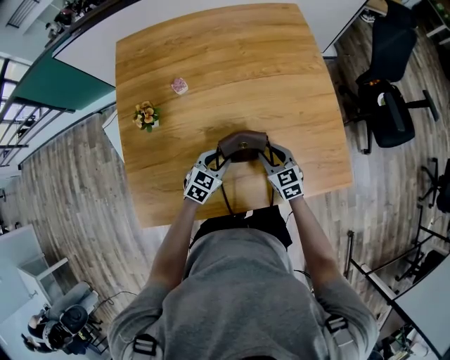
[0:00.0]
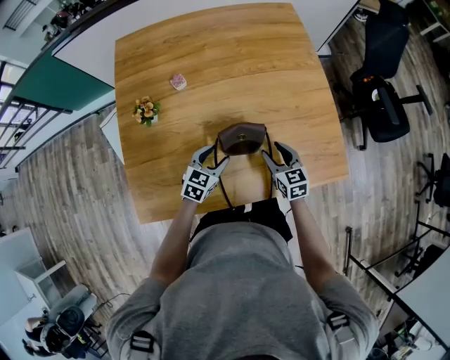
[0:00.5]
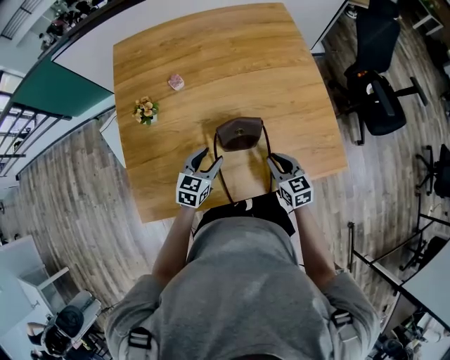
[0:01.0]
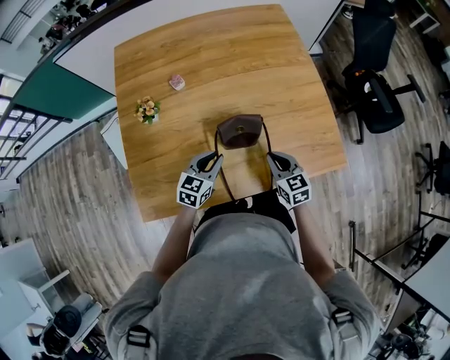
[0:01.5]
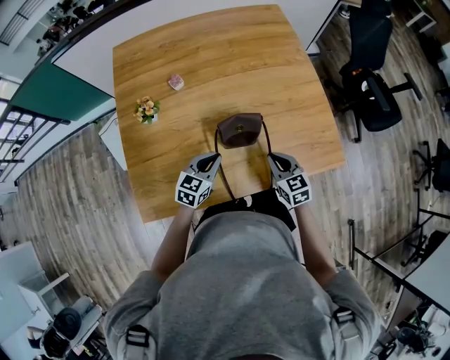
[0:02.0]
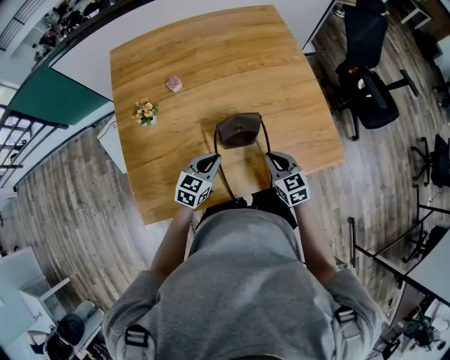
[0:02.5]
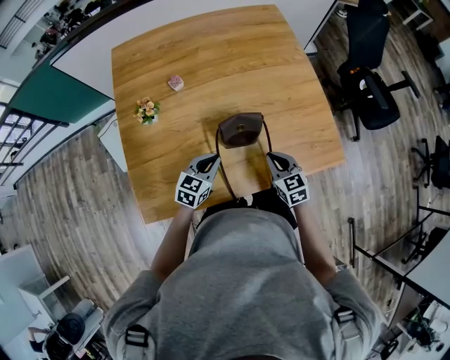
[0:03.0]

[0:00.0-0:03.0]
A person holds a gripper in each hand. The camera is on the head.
0:00.0 to 0:01.5: The right gripper travels backward and upward by roughly 10 cm, and closes its fingers; the left gripper shifts about 10 cm upward and backward, and opens, then closes once more.
0:01.5 to 0:03.0: The grippers stay close to where they were, moving slightly.

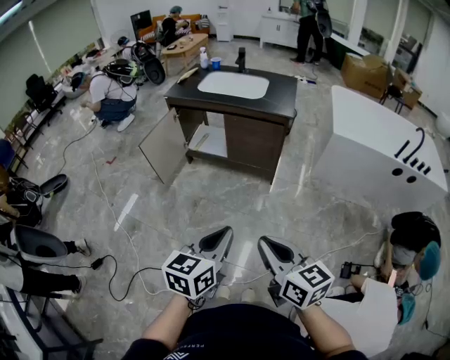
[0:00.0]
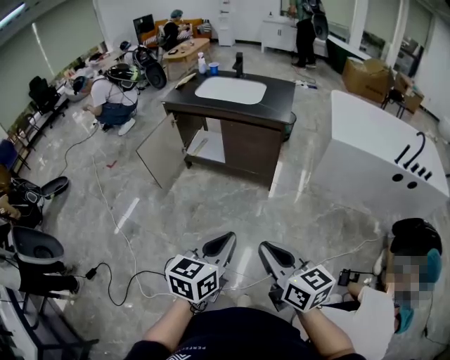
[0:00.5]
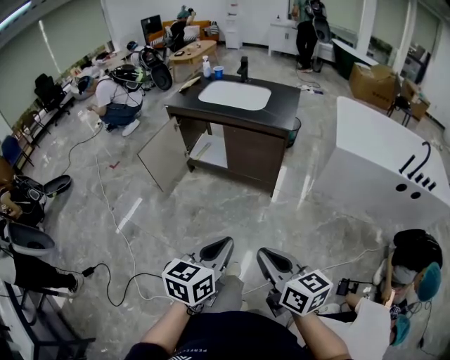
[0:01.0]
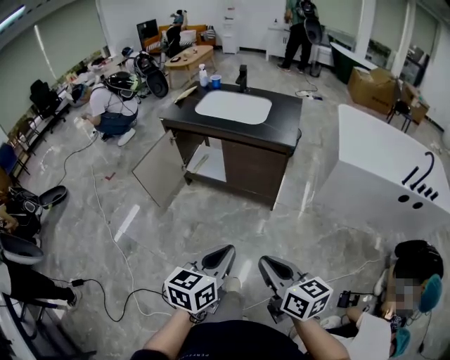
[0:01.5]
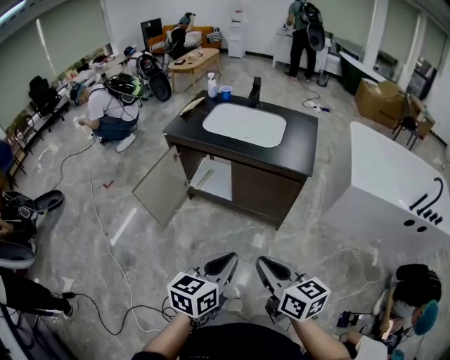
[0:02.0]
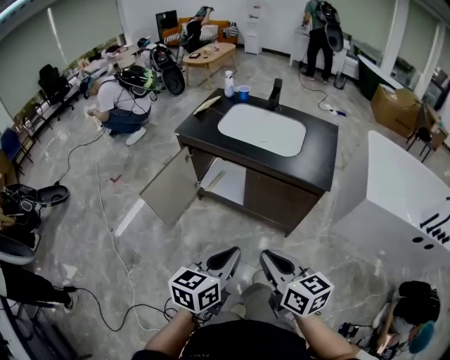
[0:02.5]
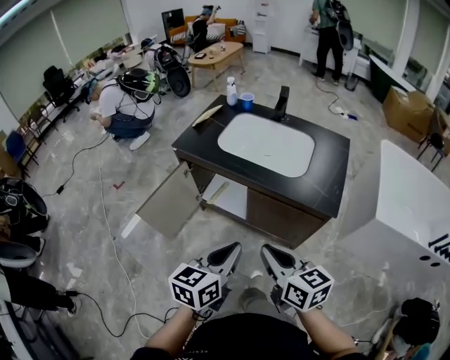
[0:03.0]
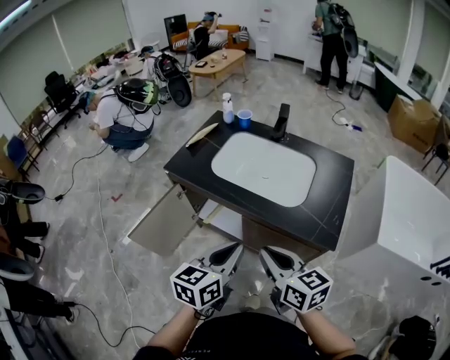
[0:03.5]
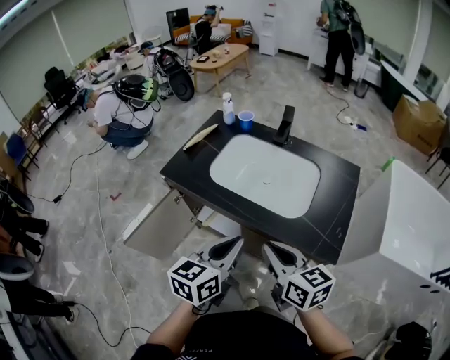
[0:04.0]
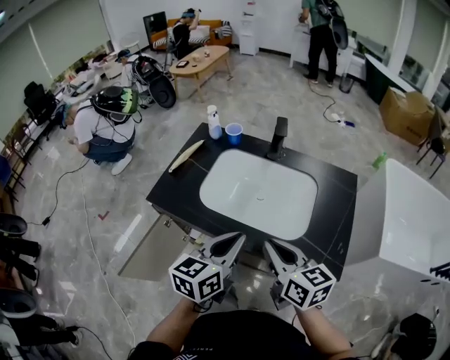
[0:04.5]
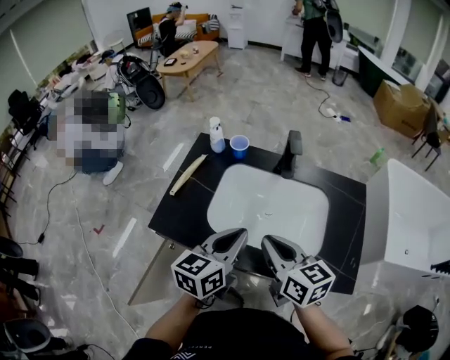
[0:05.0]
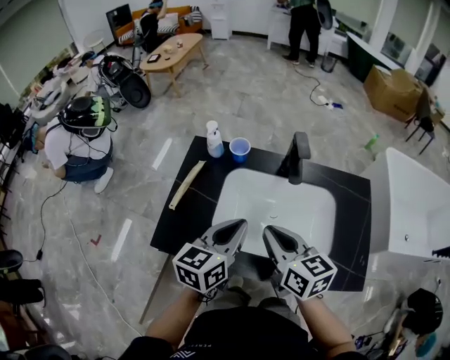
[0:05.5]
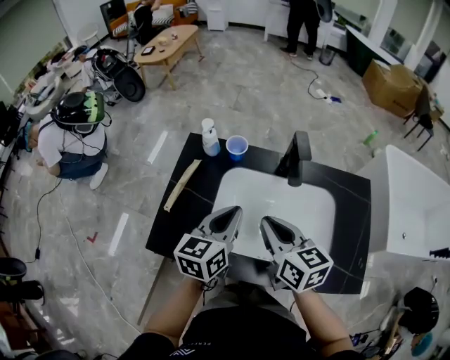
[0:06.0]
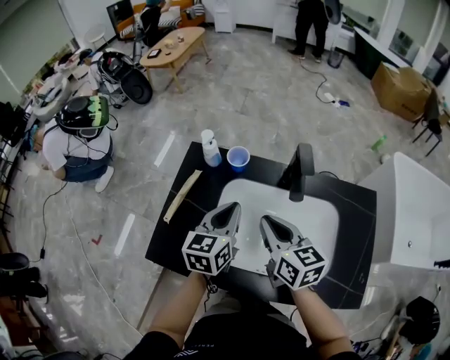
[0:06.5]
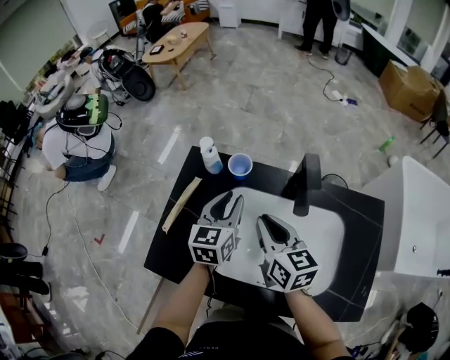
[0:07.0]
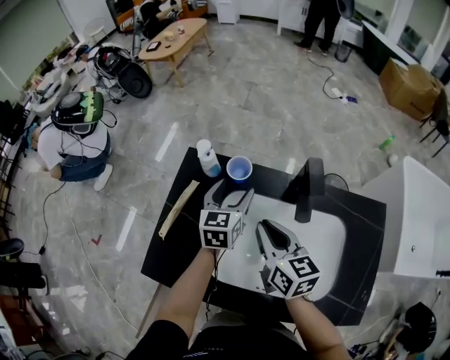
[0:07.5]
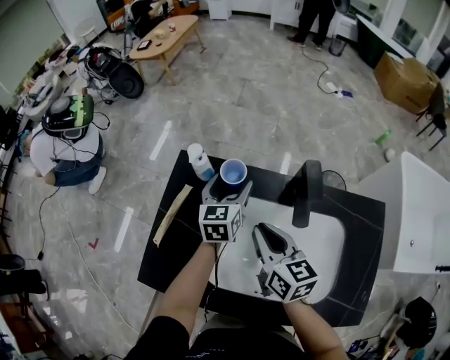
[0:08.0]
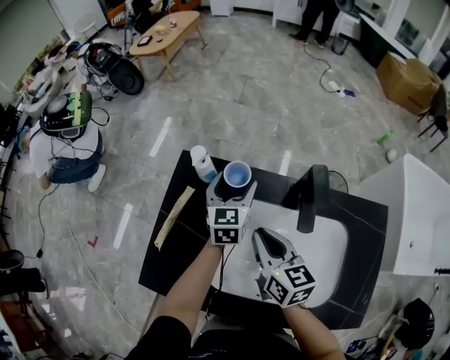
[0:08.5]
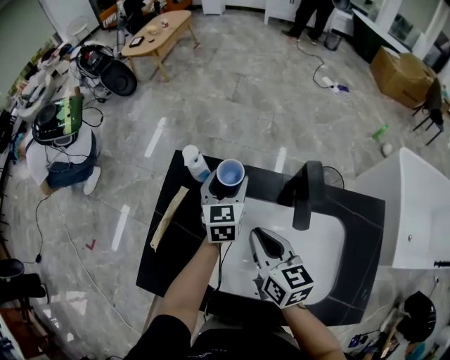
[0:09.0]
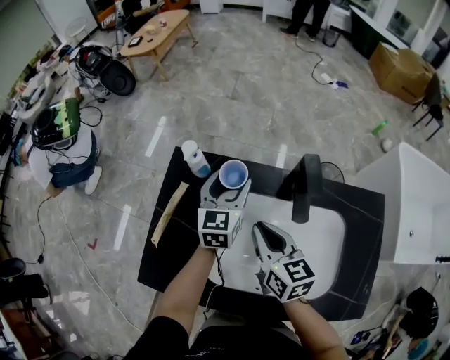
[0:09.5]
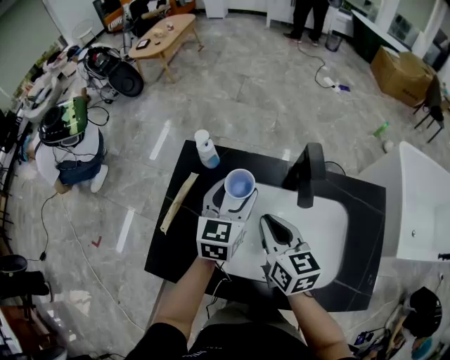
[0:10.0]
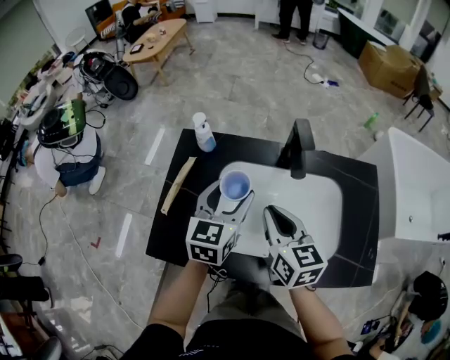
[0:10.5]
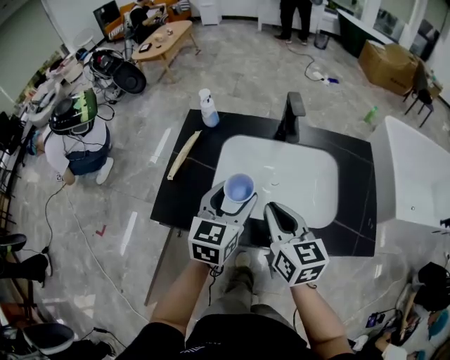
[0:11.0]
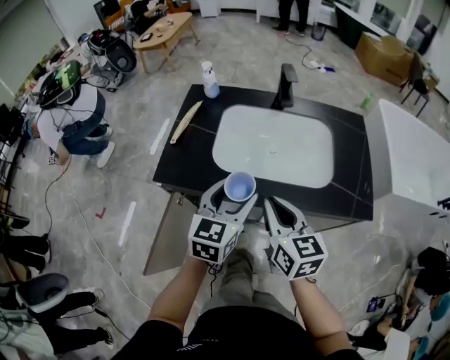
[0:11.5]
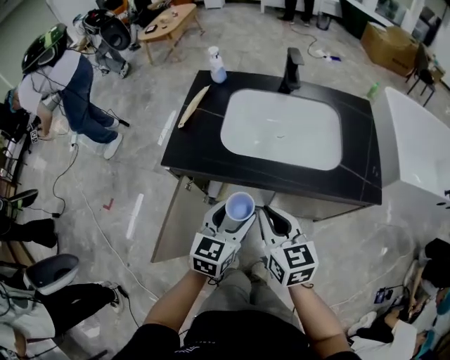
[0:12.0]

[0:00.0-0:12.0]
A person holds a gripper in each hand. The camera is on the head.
0:00.0 to 0:02.0: The grippers both shift forward by about 25 cm.
0:02.0 to 0:04.0: Both grippers are carried forward, roughly 40 cm.
0:04.0 to 0:06.0: Both grippers move forward, about 30 cm.
0:06.0 to 0:08.0: The right gripper goes roughly 10 cm forward and downward; the left gripper shifts roughly 25 cm forward and downward, and opens.
0:08.0 to 0:10.0: The left gripper is displaced backward and upward by some 10 cm.
0:10.0 to 0:12.0: The two grippers go roughly 40 cm backward.

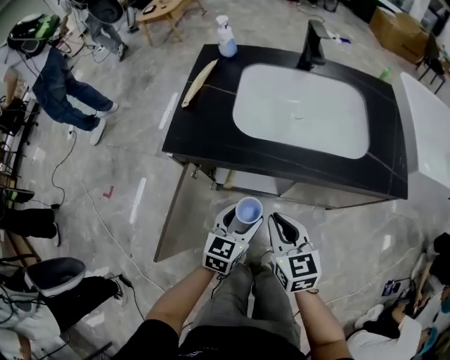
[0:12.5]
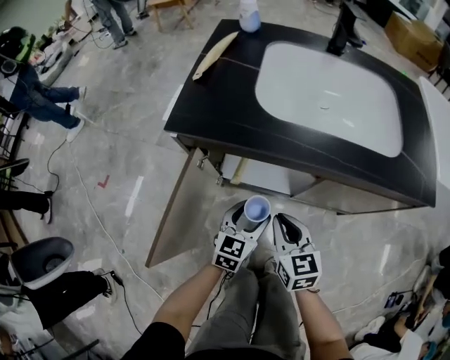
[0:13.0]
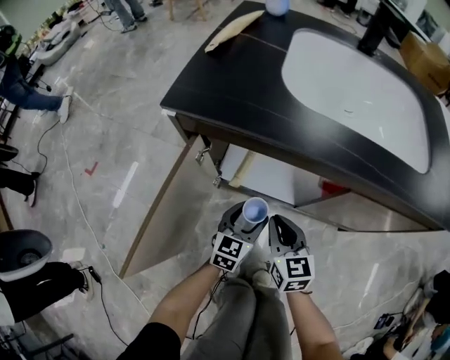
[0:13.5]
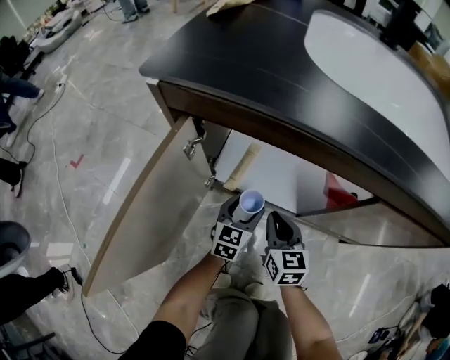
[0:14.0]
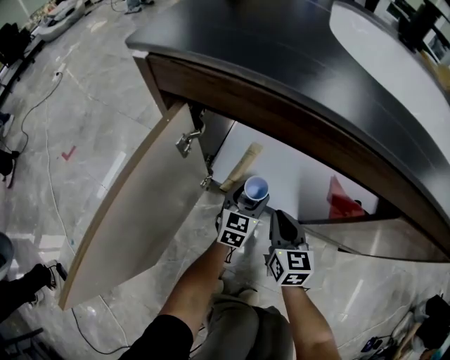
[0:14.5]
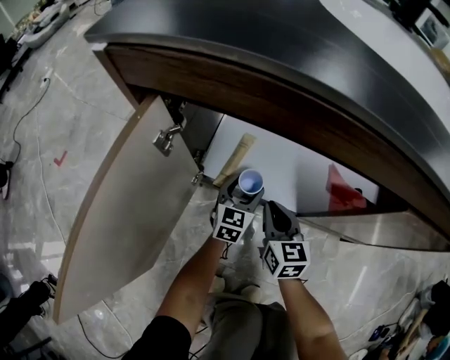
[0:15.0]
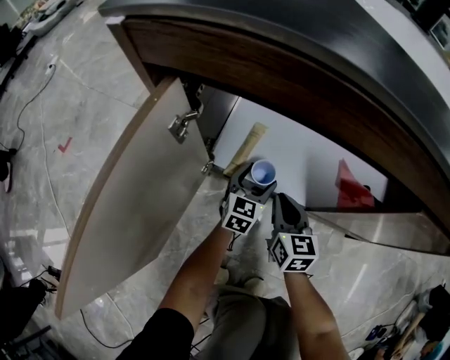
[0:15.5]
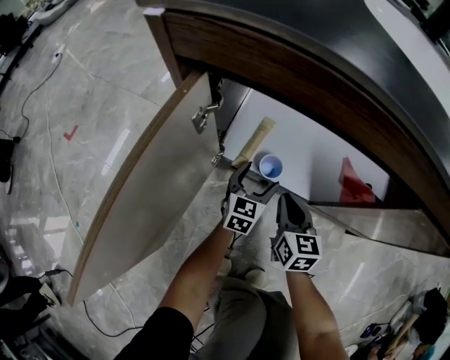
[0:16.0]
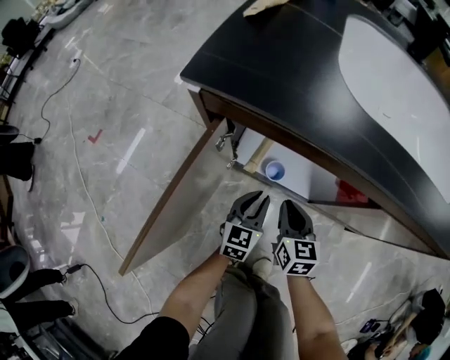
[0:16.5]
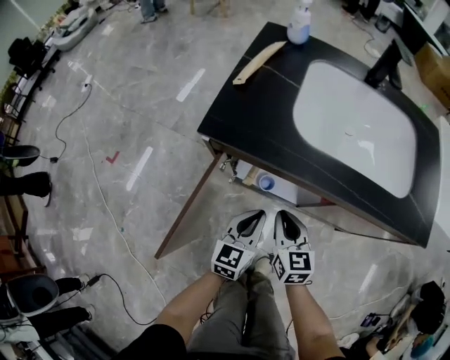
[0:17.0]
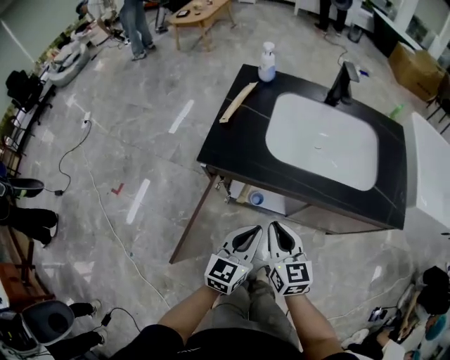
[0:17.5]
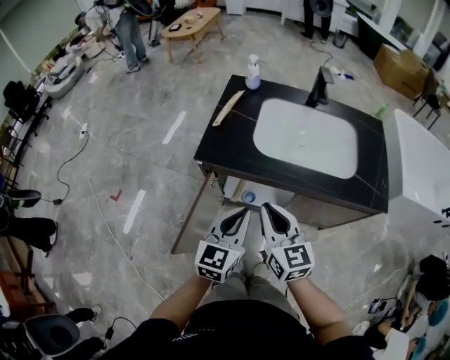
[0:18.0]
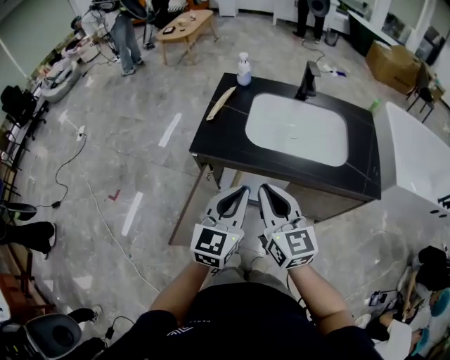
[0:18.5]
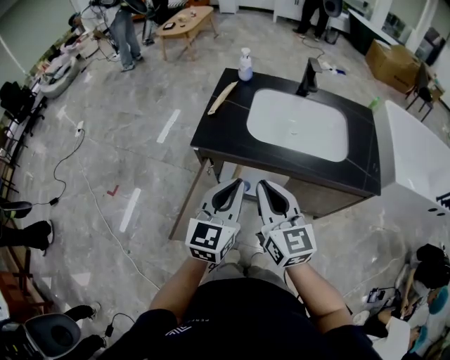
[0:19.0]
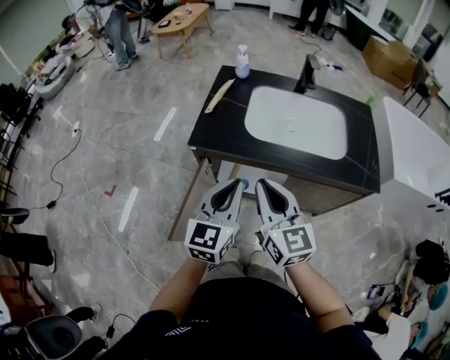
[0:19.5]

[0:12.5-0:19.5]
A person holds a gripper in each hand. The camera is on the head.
0:12.5 to 0:14.5: The right gripper travels downward by roughly 40 cm. The left gripper goes roughly 40 cm downward and forward.
0:14.5 to 0:16.0: The grippers stay close to where they were, moving slightly.
0:16.0 to 0:17.5: The grippers both shift upward by about 50 cm. The left gripper closes up.
0:17.5 to 0:19.5: Both grippers move upward, roughly 15 cm.

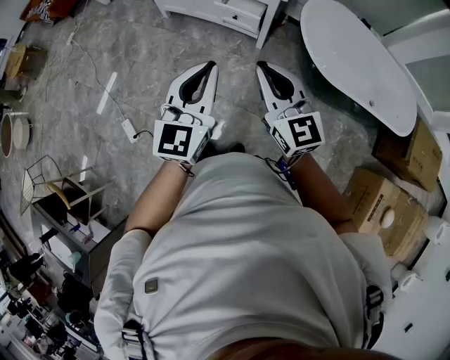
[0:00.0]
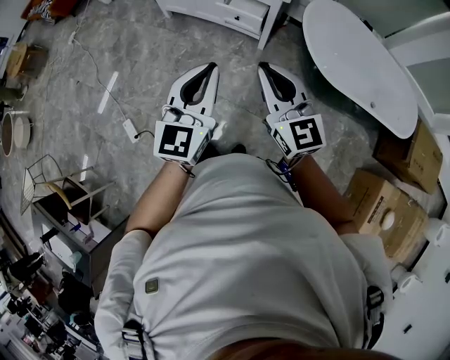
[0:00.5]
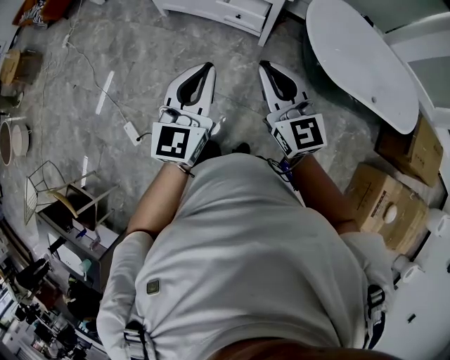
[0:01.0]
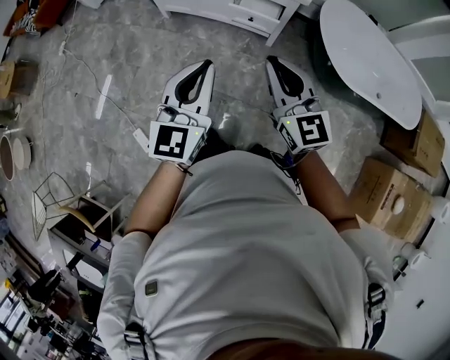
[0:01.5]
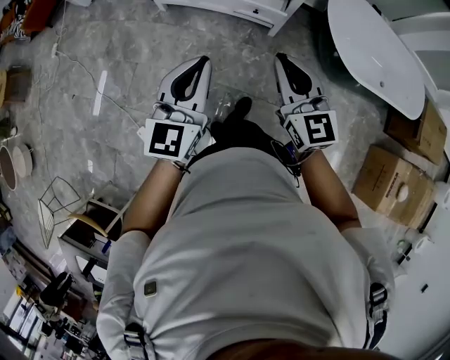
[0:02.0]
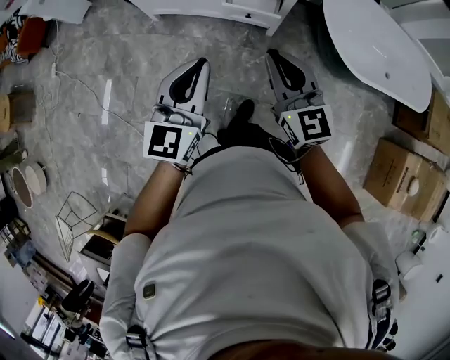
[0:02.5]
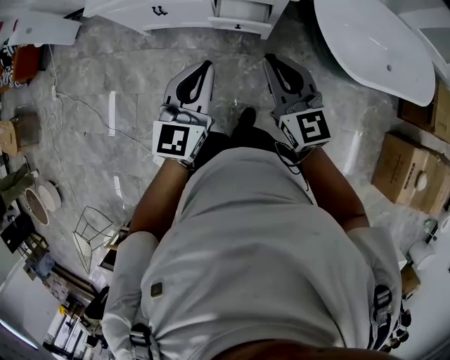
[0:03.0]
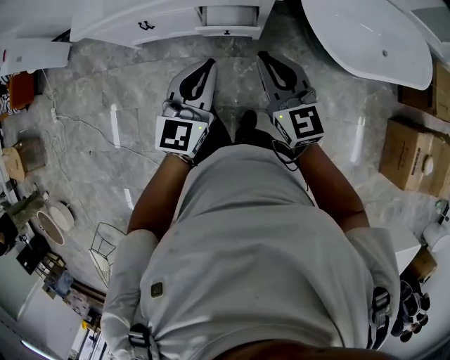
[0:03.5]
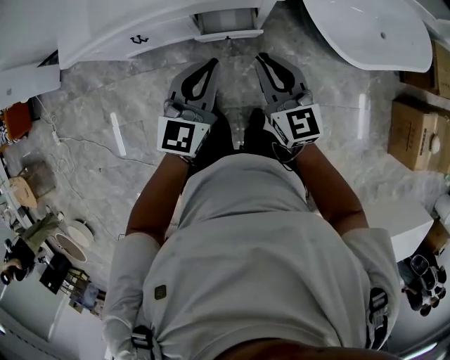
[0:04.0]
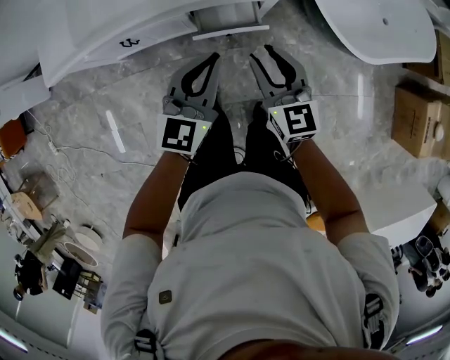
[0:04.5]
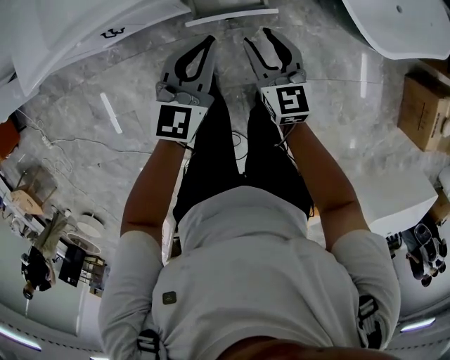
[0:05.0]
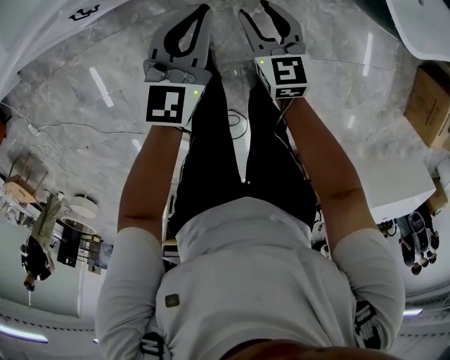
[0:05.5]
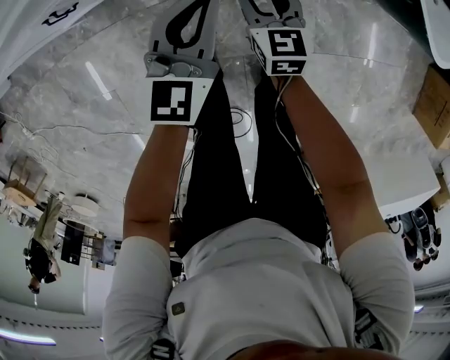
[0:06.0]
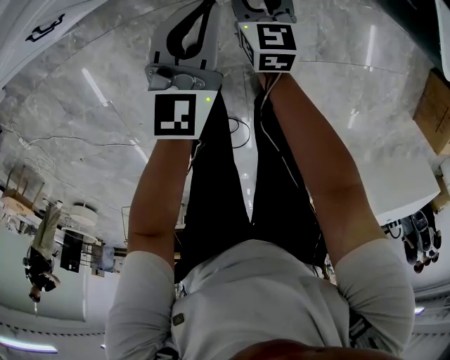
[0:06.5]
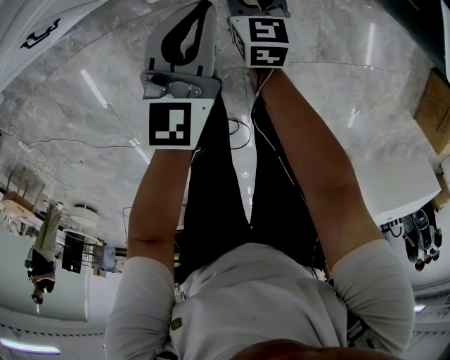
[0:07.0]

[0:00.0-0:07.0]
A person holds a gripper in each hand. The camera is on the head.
0:00.0 to 0:02.0: The right gripper travels forward and to the left by about 20 cm. The left gripper moves to the left and forward, approximately 25 cm.
0:02.0 to 0:03.5: The left gripper moves forward and to the right, some 25 cm, while the right gripper heads forward, covering roughly 20 cm.
0:03.5 to 0:05.0: The two grippers go approximately 30 cm downward and forward. The right gripper changes its angle by some 20 degrees, and opens up.
0:05.0 to 0:07.0: The two grippers go approximately 30 cm downward.
